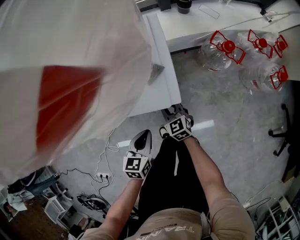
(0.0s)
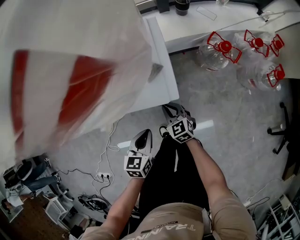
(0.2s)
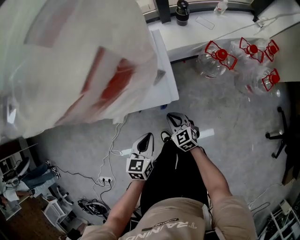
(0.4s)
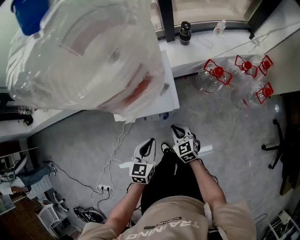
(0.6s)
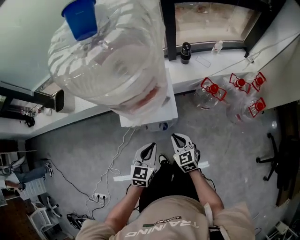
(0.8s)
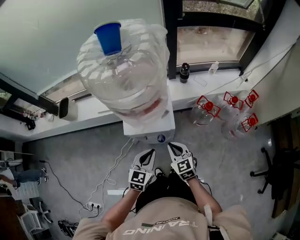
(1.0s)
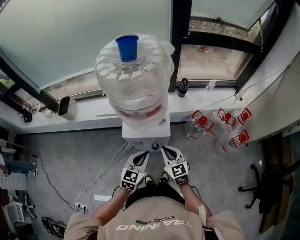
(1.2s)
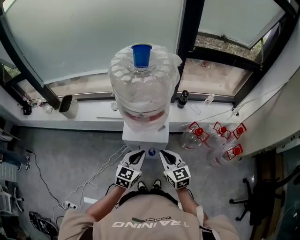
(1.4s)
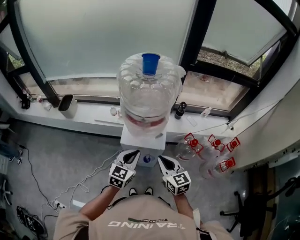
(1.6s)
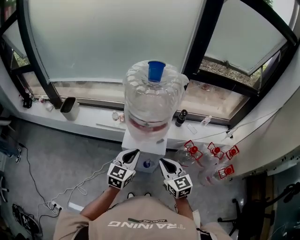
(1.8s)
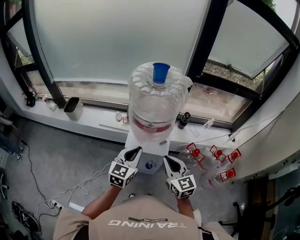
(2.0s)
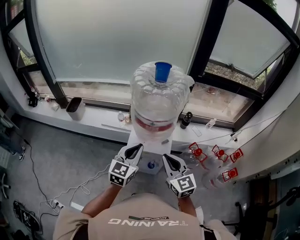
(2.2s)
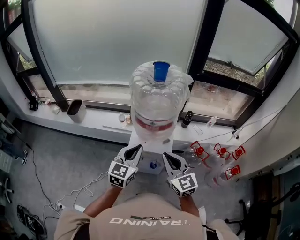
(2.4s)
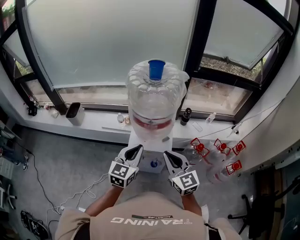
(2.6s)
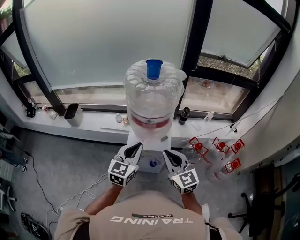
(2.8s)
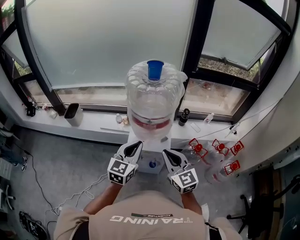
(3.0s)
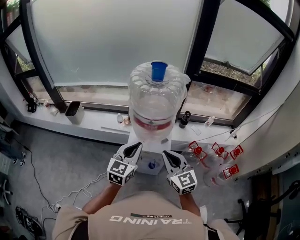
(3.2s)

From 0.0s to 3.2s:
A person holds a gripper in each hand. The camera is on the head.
From 0.0s to 1.6s: Both grippers move upward, some 40 cm. The left gripper changes its angle by some 30 degrees.
From 1.6s to 3.2s: Both grippers travel together upward, about 10 cm.

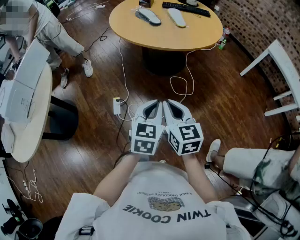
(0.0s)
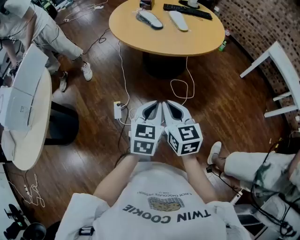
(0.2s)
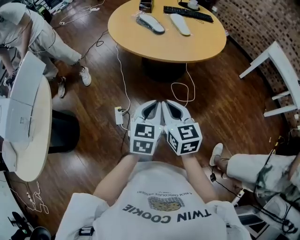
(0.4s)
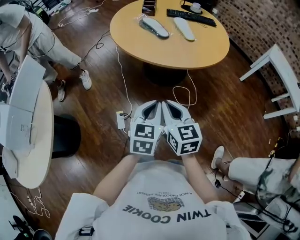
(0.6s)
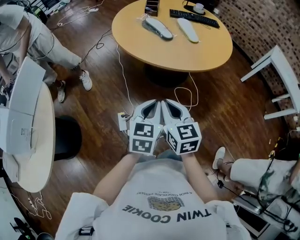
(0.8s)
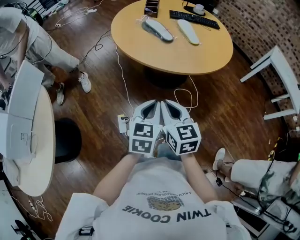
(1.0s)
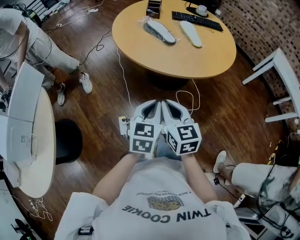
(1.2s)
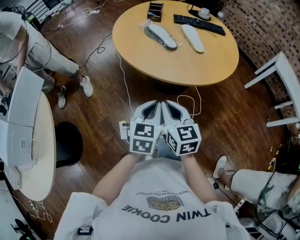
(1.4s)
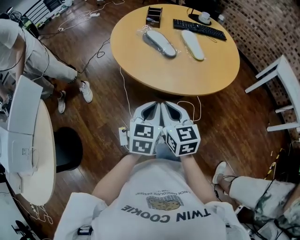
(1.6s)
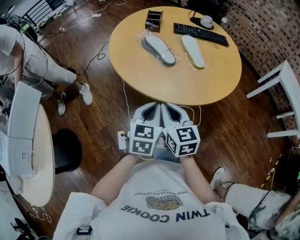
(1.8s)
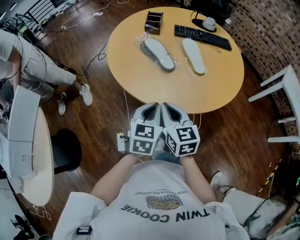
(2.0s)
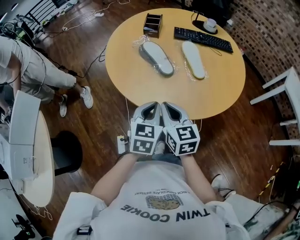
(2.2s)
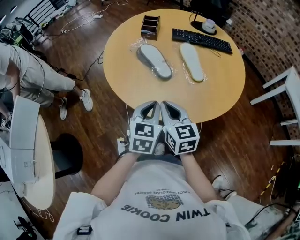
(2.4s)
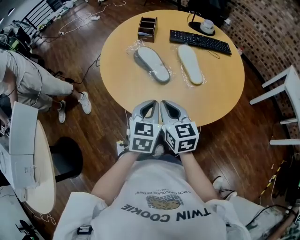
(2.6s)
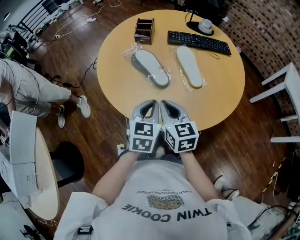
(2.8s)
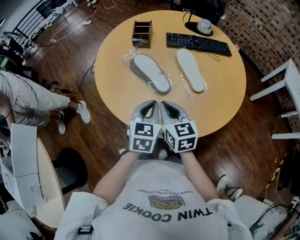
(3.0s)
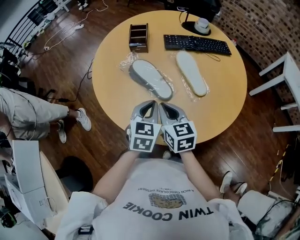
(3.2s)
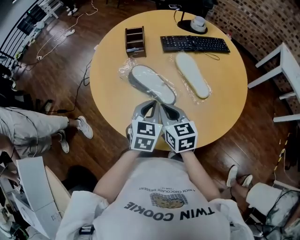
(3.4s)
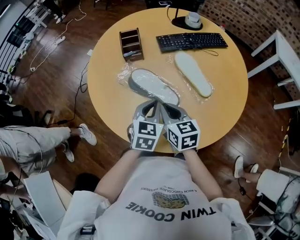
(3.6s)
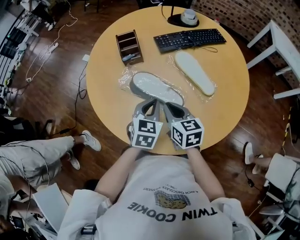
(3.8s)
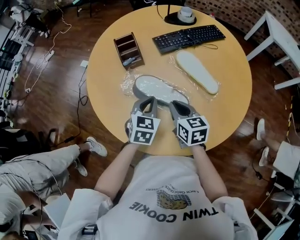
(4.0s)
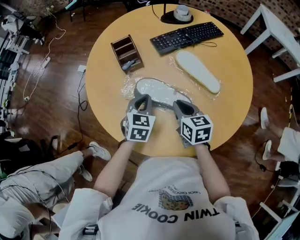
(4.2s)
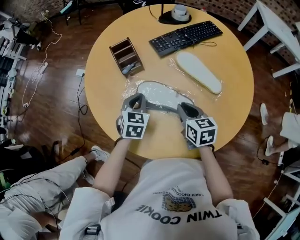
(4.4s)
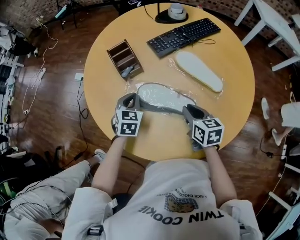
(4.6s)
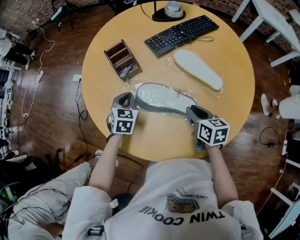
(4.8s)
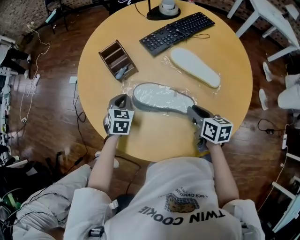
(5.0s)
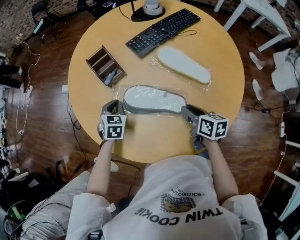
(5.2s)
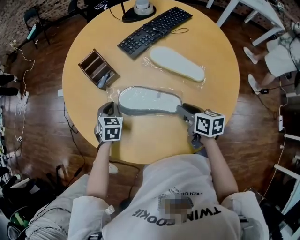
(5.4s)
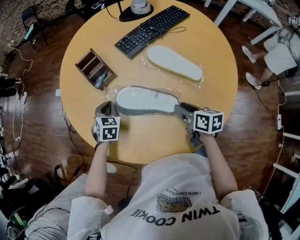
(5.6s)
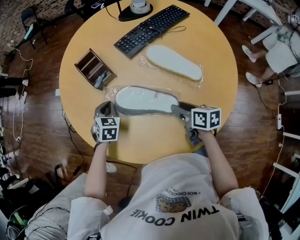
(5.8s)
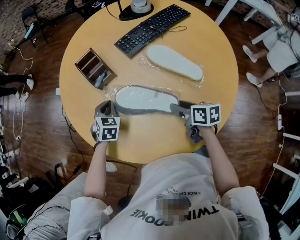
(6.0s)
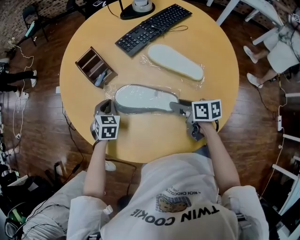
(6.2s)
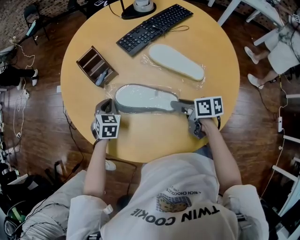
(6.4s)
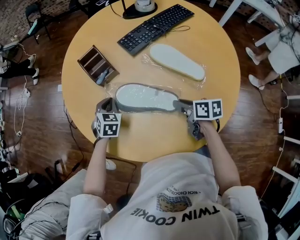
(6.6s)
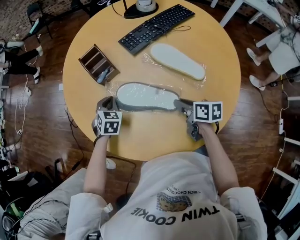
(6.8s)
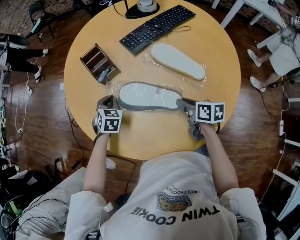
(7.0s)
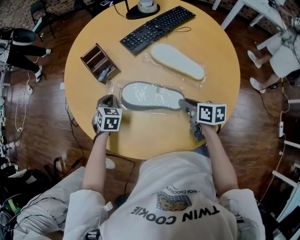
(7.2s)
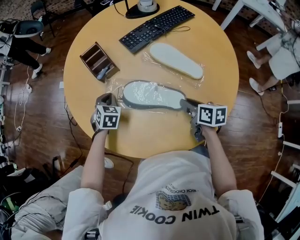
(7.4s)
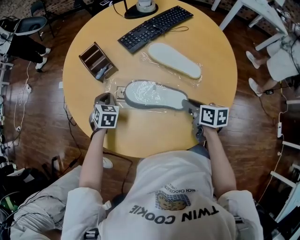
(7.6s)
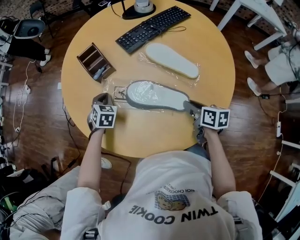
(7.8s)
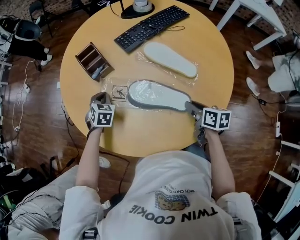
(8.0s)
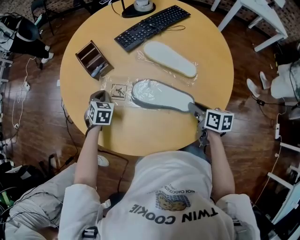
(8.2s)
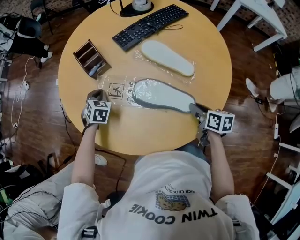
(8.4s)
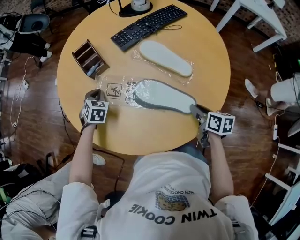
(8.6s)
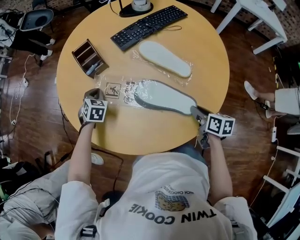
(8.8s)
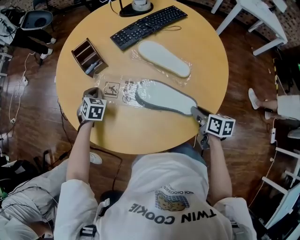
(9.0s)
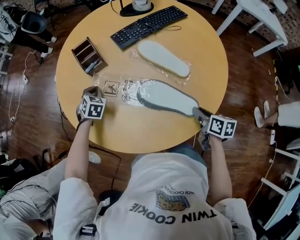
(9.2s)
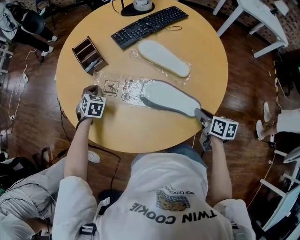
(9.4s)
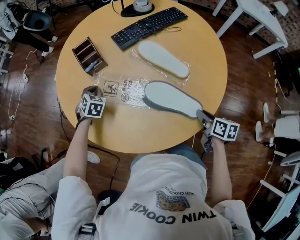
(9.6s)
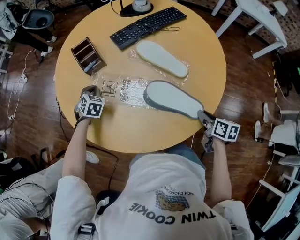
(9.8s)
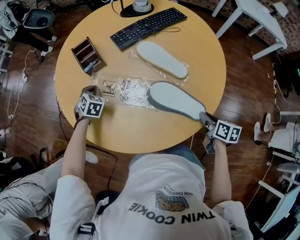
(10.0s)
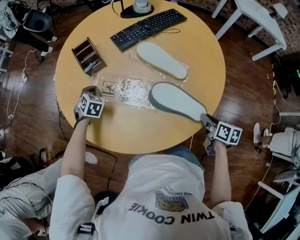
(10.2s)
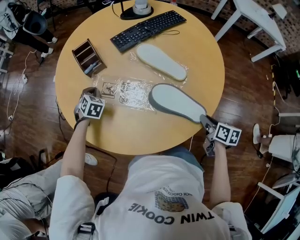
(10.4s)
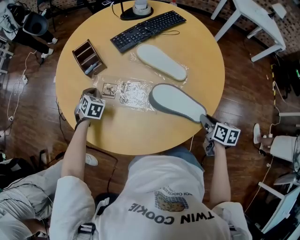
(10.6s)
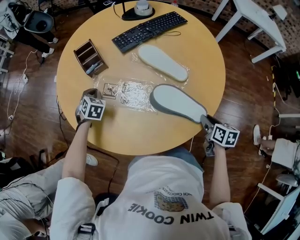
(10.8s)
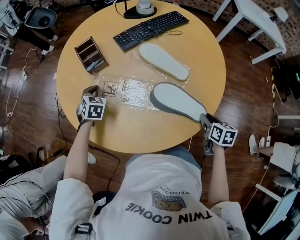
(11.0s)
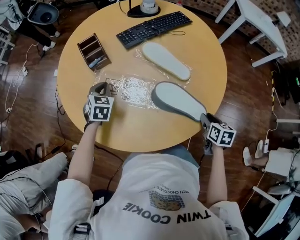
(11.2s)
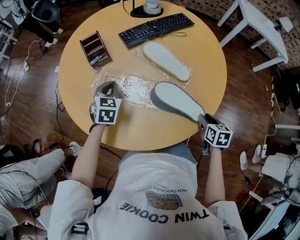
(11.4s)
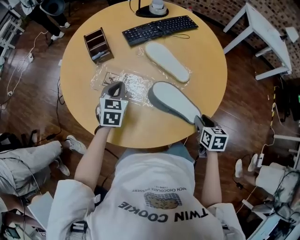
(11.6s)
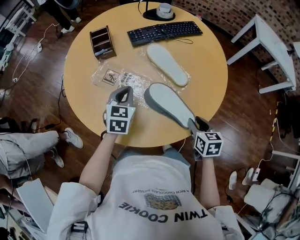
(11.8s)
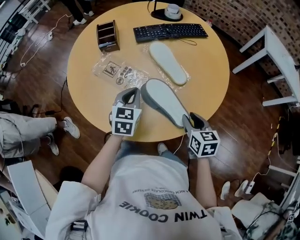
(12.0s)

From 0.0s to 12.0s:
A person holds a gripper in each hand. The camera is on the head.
From 0.0s to 1.6s: Both grippers move forward and to the left, some 35 cm.
From 1.6s to 3.0s: Both grippers move forward, approximately 25 cm.
From 3.0s to 4.4s: The right gripper shifts roughly 15 cm forward and downward, and swivels roughly 30 degrees, while the left gripper is displaced forward and to the left by approximately 25 cm, and rotates roughly 30 degrees.
From 4.4s to 6.0s: The left gripper moves downward, approximately 5 cm, while the right gripper shifts some 10 cm downward and to the right, changes its angle by some 30 degrees, and opens up.
From 6.0s to 7.6s: The right gripper ends up approximately 5 cm from where it was, and closes.
From 7.6s to 9.0s: The right gripper goes roughly 10 cm to the right and backward.
From 9.0s to 10.4s: The right gripper goes some 10 cm to the right and backward.
From 10.4s to 12.0s: The left gripper shifts about 30 cm to the right, backward and upward, and swivels about 40 degrees, while the right gripper changes place by about 5 cm, and rotates approximately 40 degrees.

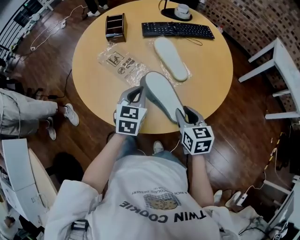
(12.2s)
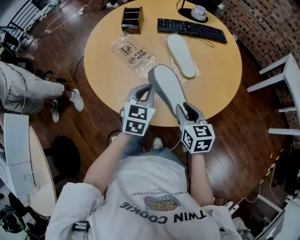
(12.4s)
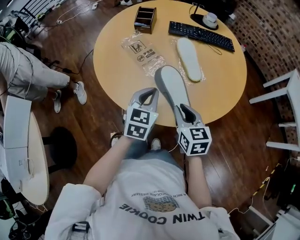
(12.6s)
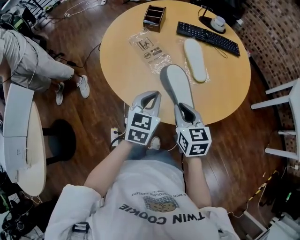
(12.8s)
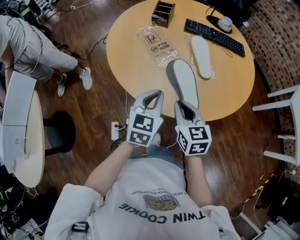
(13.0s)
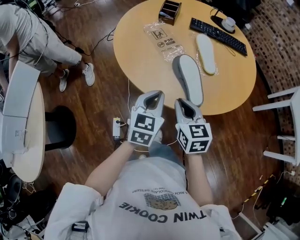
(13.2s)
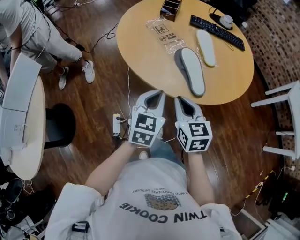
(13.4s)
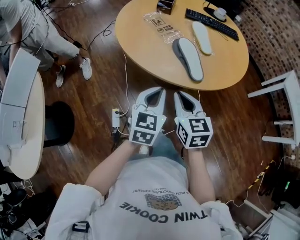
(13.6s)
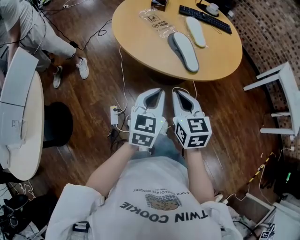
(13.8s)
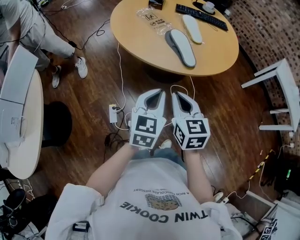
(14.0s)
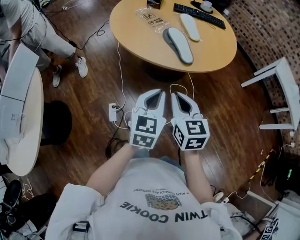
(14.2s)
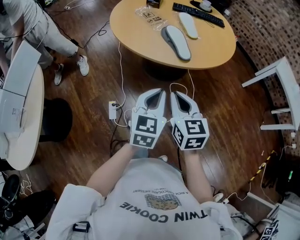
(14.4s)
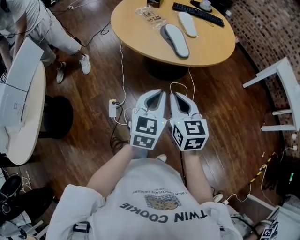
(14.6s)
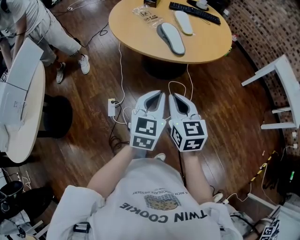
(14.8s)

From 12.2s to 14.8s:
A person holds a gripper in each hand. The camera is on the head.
From 12.2s to 13.4s: The right gripper travels to the left, backward and upward by approximately 20 cm, turns by roughly 20 degrees, and closes, while the left gripper is displaced backward by approximately 20 cm.
From 13.4s to 14.8s: Both grippers travel together backward, roughly 25 cm.

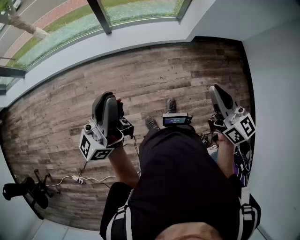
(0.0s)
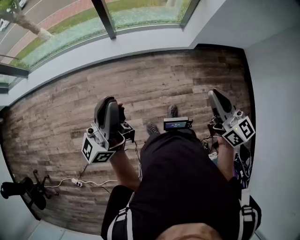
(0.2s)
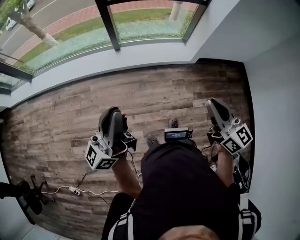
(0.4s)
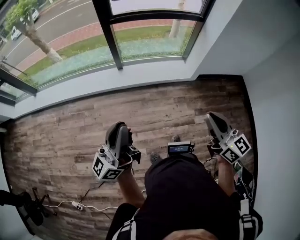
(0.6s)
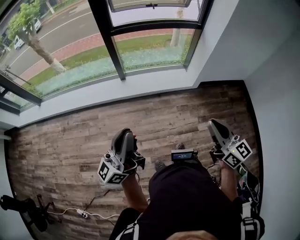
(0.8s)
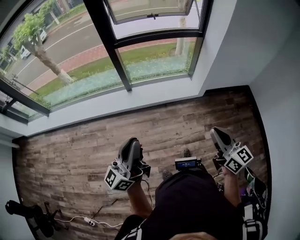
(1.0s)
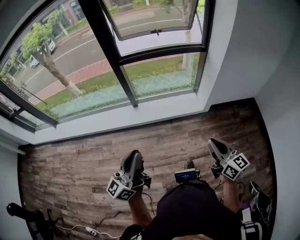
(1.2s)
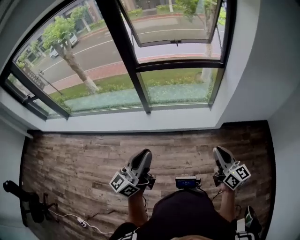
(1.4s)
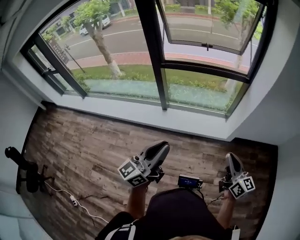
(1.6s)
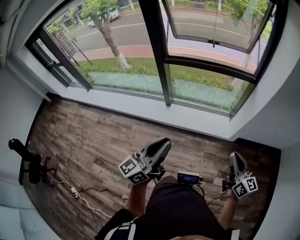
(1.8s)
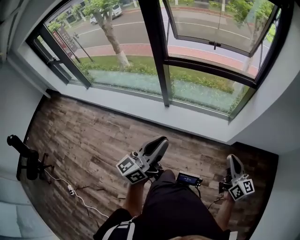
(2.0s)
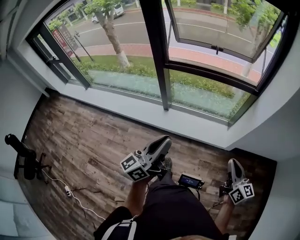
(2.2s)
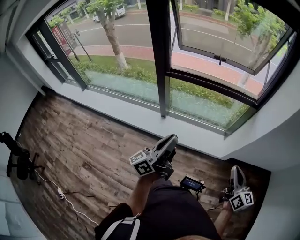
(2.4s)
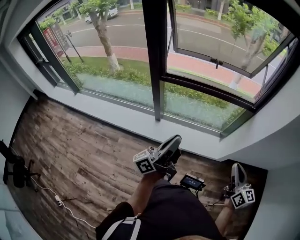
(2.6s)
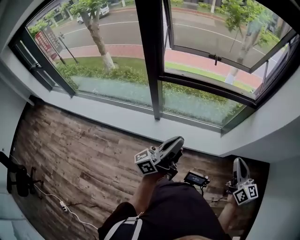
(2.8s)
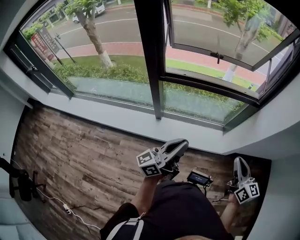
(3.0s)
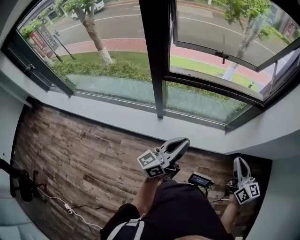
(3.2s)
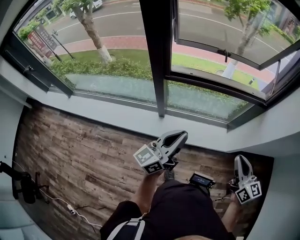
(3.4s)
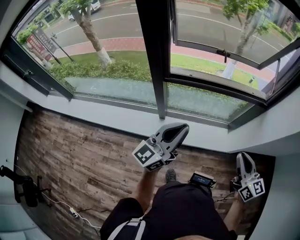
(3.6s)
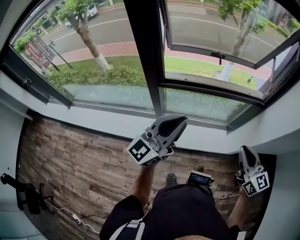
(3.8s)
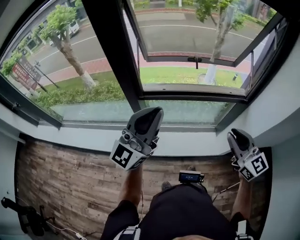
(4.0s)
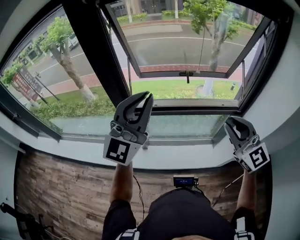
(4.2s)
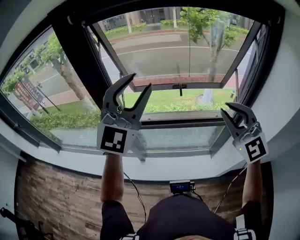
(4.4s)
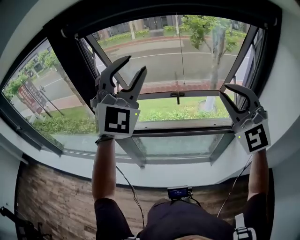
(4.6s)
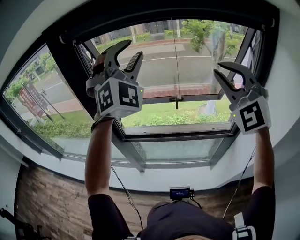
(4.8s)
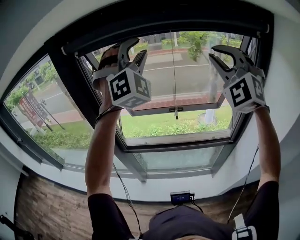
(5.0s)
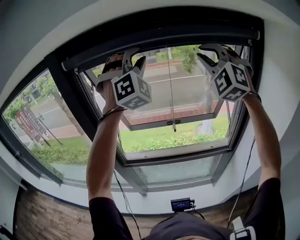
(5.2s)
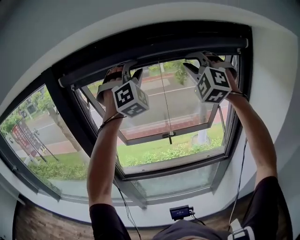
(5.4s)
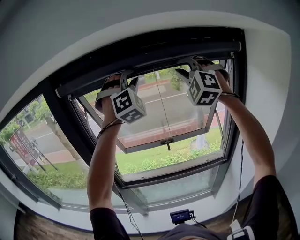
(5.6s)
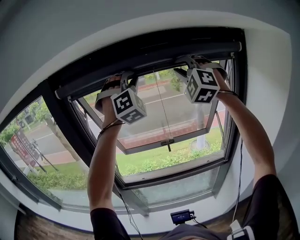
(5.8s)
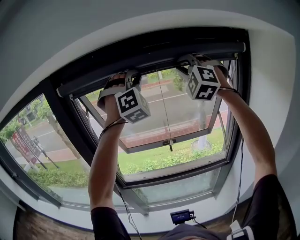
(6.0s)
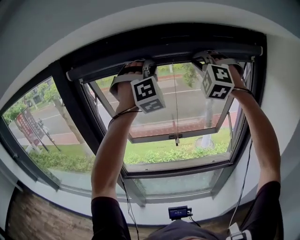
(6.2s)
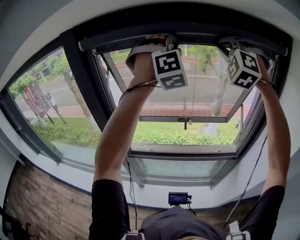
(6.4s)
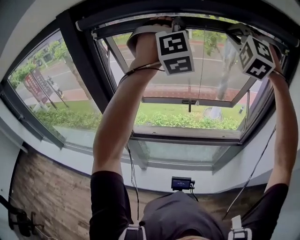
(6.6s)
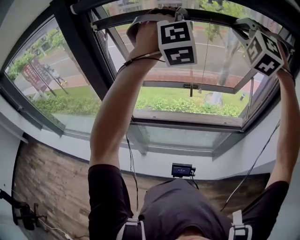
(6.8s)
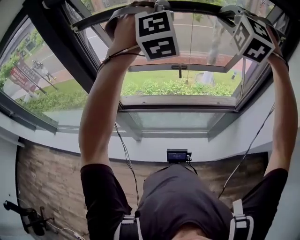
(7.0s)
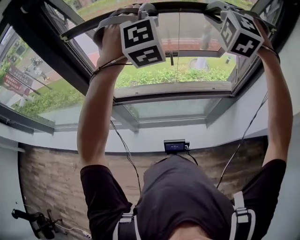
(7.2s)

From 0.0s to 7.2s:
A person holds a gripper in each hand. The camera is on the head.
From 0.0s to 1.4s: The left gripper shifts some 10 cm to the right and forward, while the right gripper shifts roughly 15 cm forward and to the right.
From 1.4s to 2.8s: The grippers both shift forward by approximately 30 cm. The left gripper rotates roughly 30 degrees.
From 2.8s to 4.4s: Both grippers travel together forward and upward, some 35 cm. The right gripper twists some 60 degrees counterclockwise, seen from behind; the left gripper rotates around the line of its fingers by roughly 90 degrees, clockwise from behind, and opens up.
From 4.4s to 5.8s: The right gripper is displaced upward and forward by about 35 cm, and turns by some 50 degrees. Meanwhile the left gripper moves forward, upward and to the right, some 30 cm, rotates around the line of its fingers by about 50 degrees, clockwise from behind, and closes up.
From 5.8s to 7.2s: The two grippers go approximately 15 cm downward. The left gripper rotates about 20 degrees, while the right gripper turns by approximately 30 degrees.
